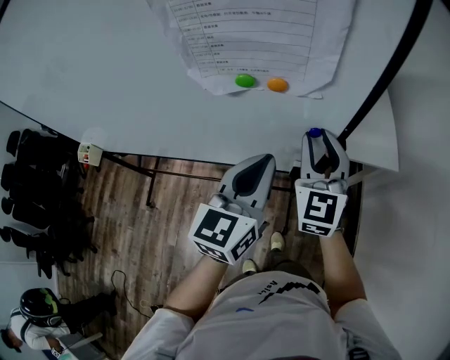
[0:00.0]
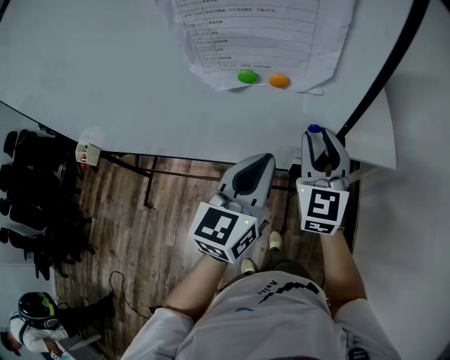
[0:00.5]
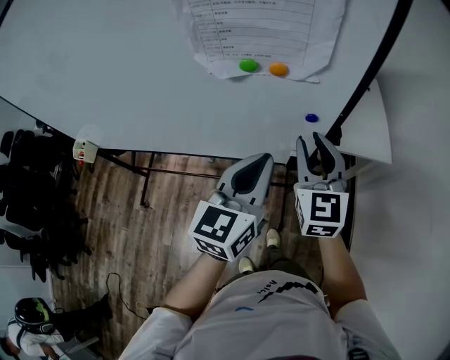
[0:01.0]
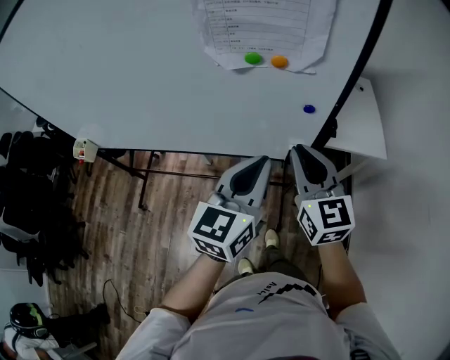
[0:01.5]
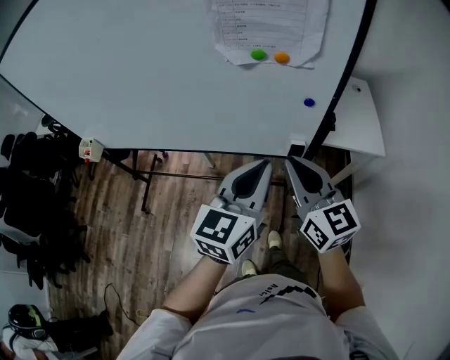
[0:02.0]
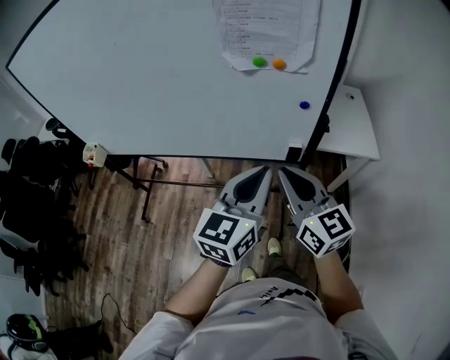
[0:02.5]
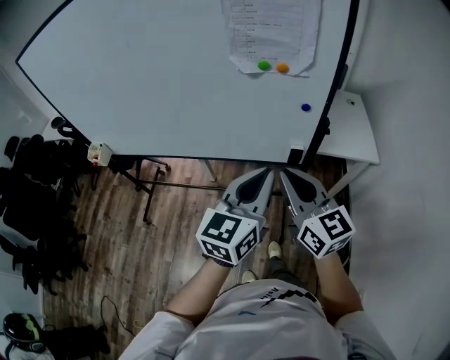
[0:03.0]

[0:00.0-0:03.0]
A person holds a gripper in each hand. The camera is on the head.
0:00.0 to 0:01.5: Both grippers travel together backward, approximately 10 cm. The right gripper swivels about 20 degrees.
0:01.5 to 0:03.0: The right gripper heads backward and to the left, covering some 15 cm, while the left gripper heads backward, covering approximately 10 cm.

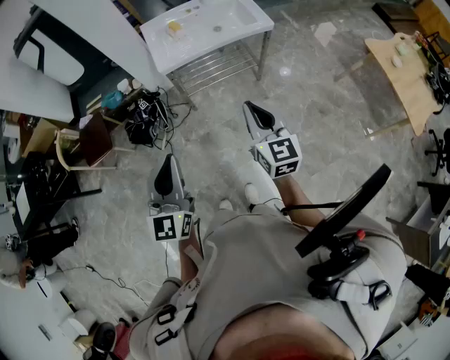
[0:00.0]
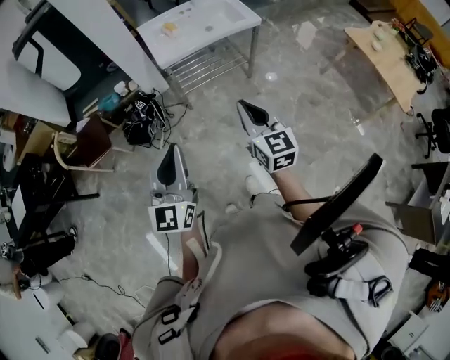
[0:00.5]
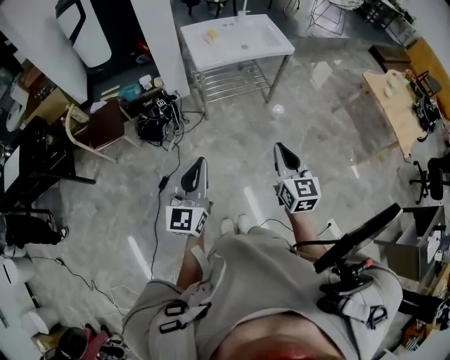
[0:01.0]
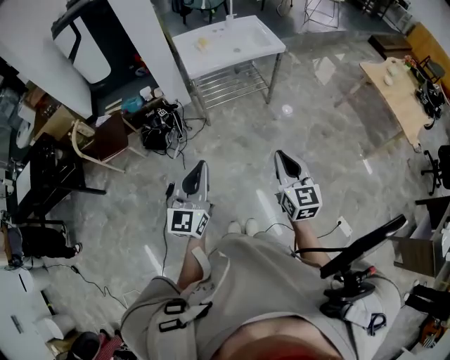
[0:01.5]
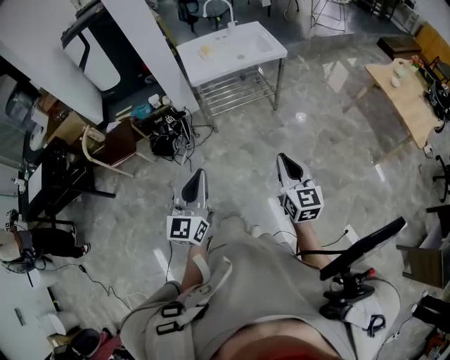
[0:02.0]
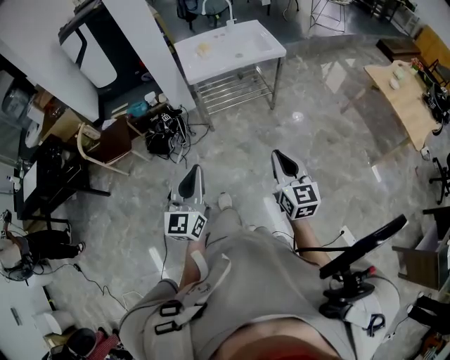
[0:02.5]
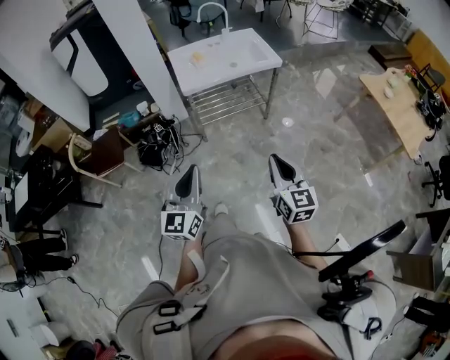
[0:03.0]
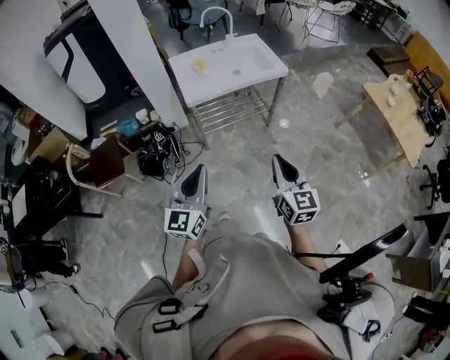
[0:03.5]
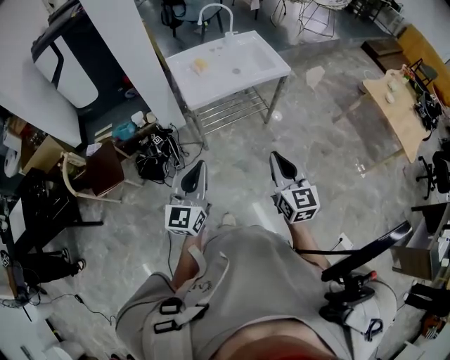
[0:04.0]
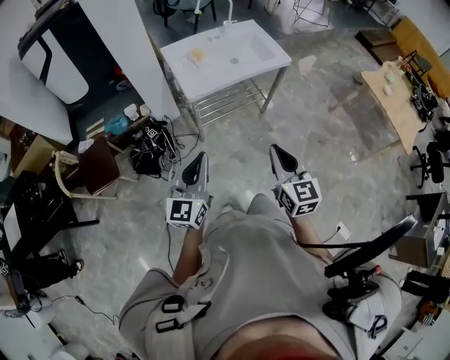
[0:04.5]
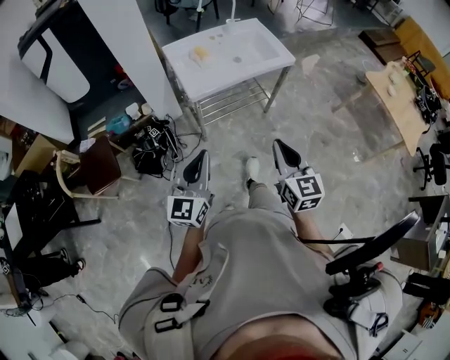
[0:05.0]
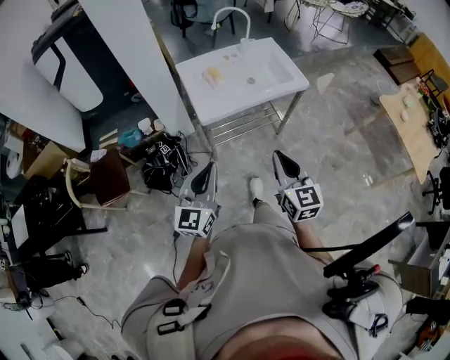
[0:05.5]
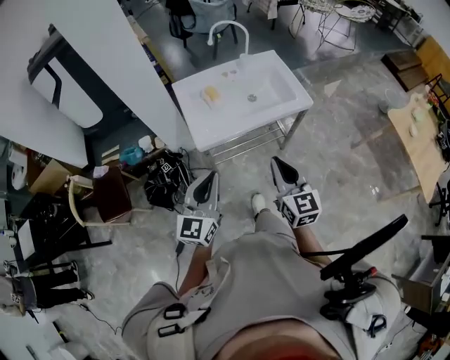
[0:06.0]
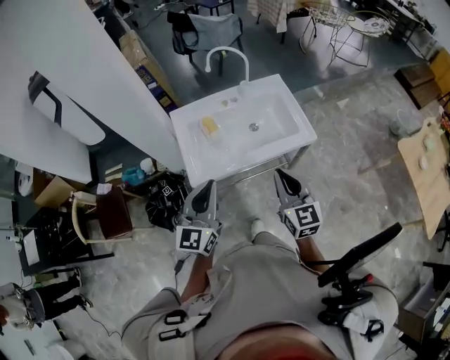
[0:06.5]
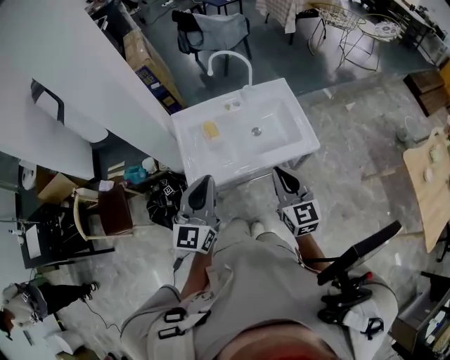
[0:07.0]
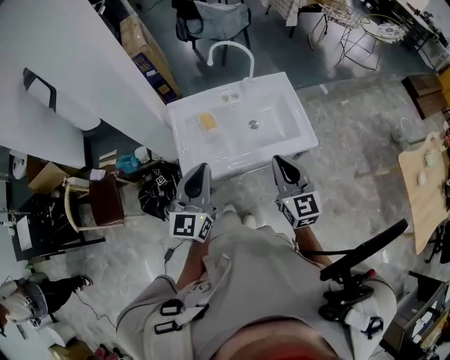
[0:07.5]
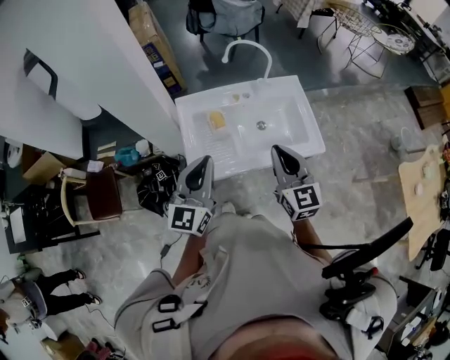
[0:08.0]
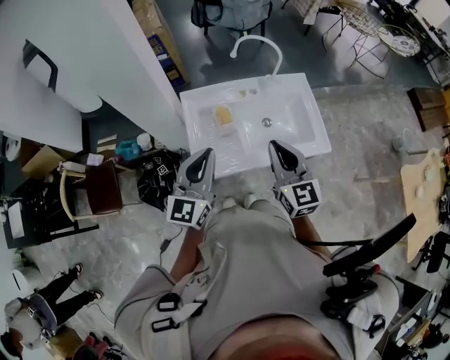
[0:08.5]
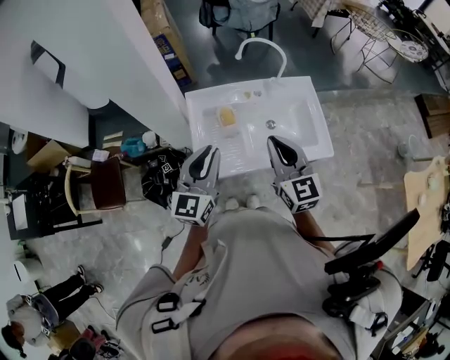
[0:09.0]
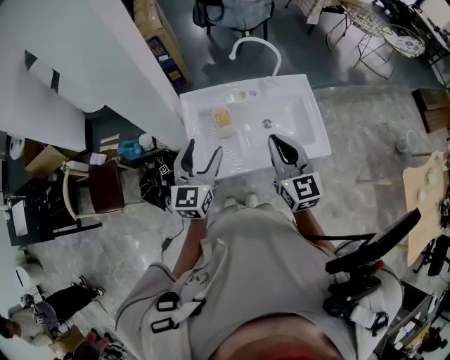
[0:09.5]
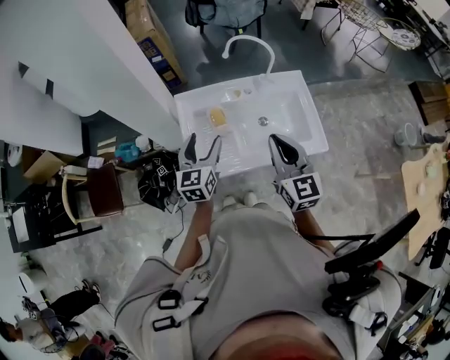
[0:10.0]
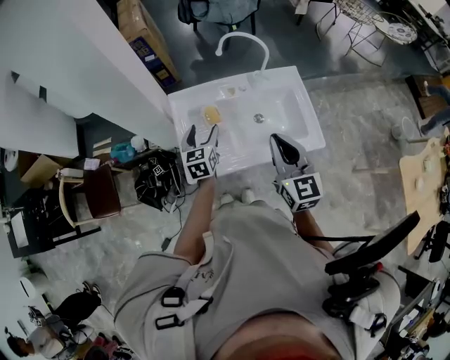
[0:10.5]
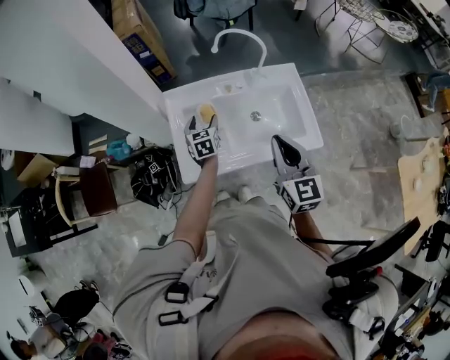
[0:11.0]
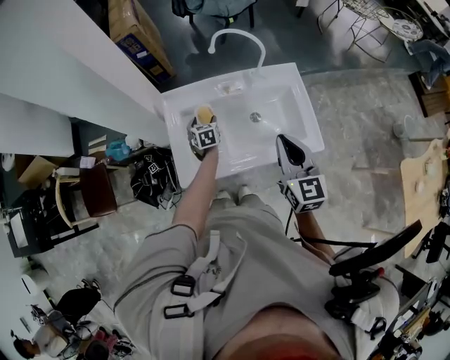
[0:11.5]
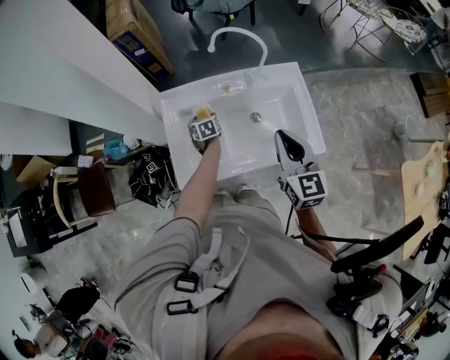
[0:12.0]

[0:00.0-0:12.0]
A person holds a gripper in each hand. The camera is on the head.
0:00.0 to 0:02.0: The grippers both shift backward by roughly 25 cm.
0:02.0 to 0:04.0: Both grippers travel together forward and to the left, about 25 cm.
0:04.0 to 0:06.0: The grippers both shift forward by some 25 cm.
0:06.0 to 0:08.0: The grippers both shift forward by roughly 25 cm.
0:08.0 to 0:10.0: The left gripper moves downward and forward, approximately 15 cm, turns by approximately 20 degrees, and opens up.
0:10.0 to 0:12.0: The right gripper is displaced to the right and forward by roughly 10 cm; the left gripper moves downward and forward, roughly 35 cm, and tilts its fingers about 40 degrees downward.

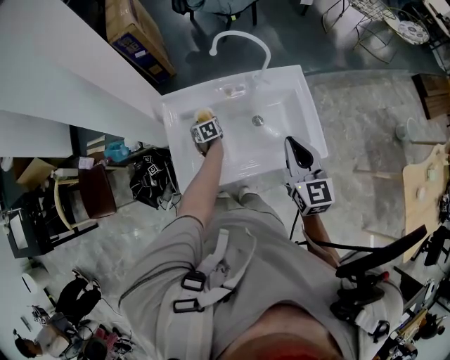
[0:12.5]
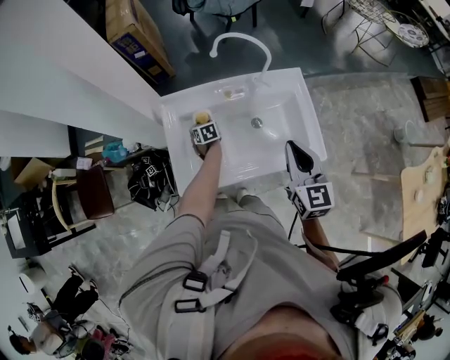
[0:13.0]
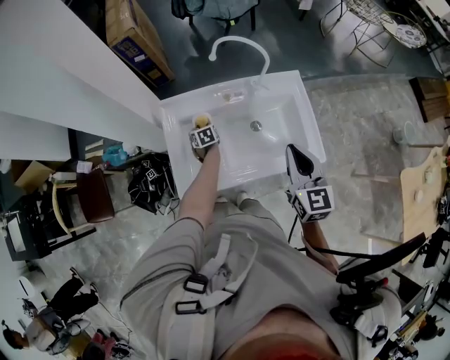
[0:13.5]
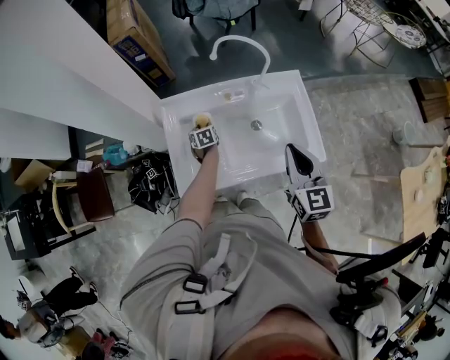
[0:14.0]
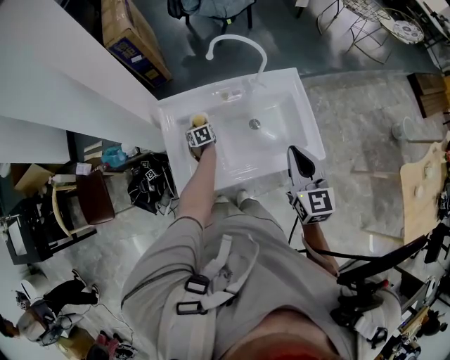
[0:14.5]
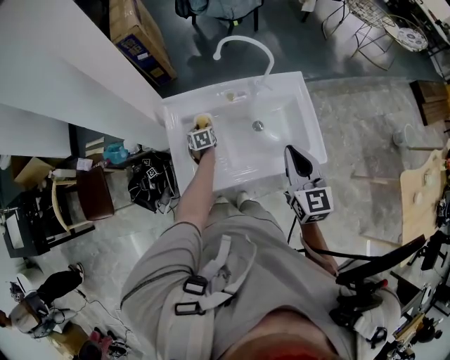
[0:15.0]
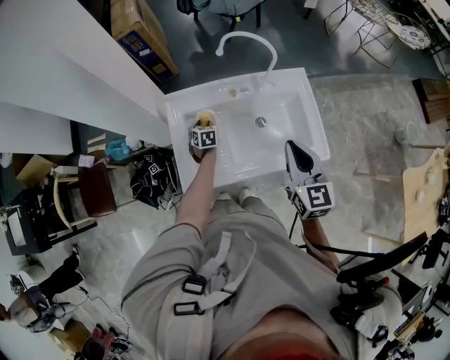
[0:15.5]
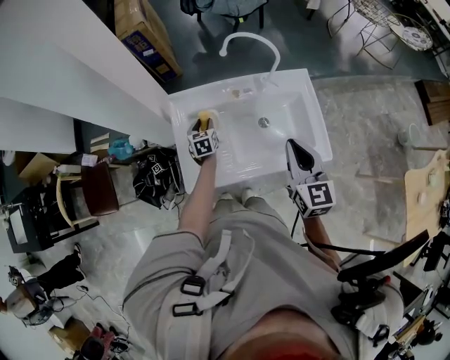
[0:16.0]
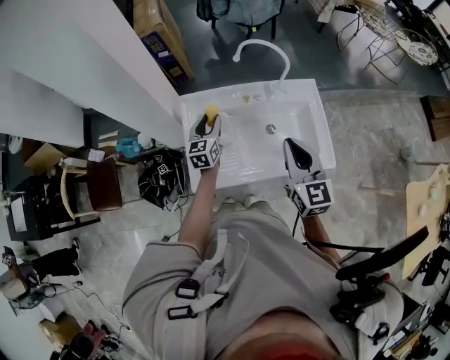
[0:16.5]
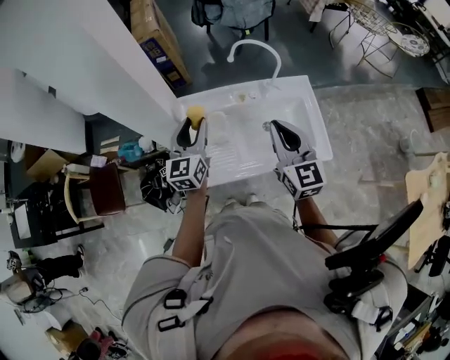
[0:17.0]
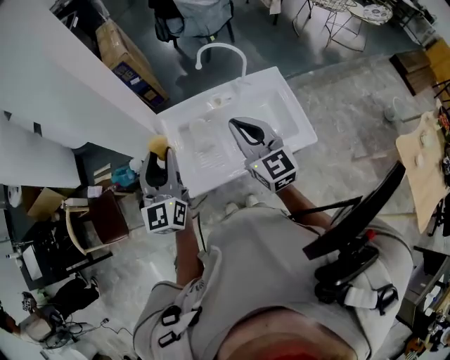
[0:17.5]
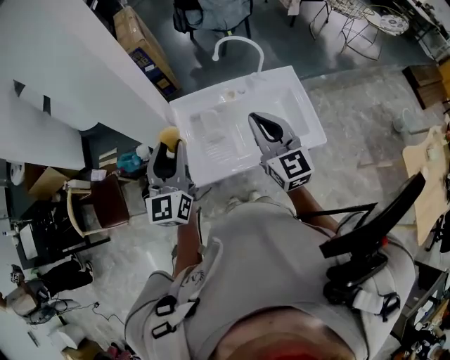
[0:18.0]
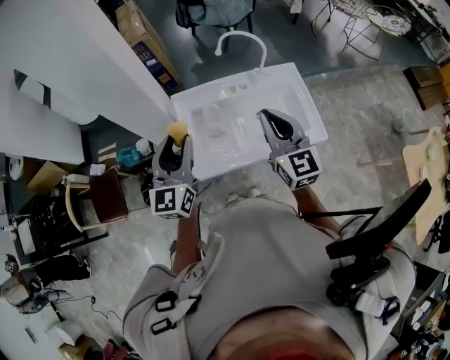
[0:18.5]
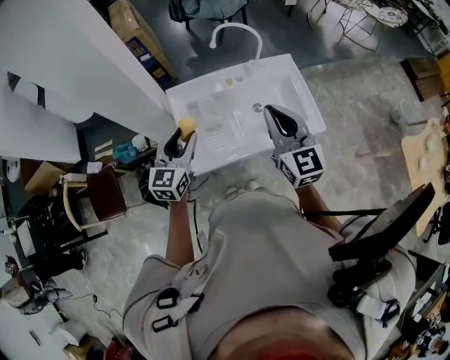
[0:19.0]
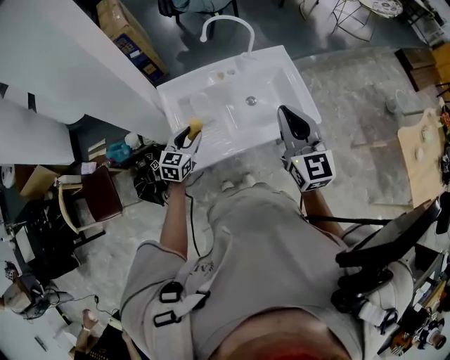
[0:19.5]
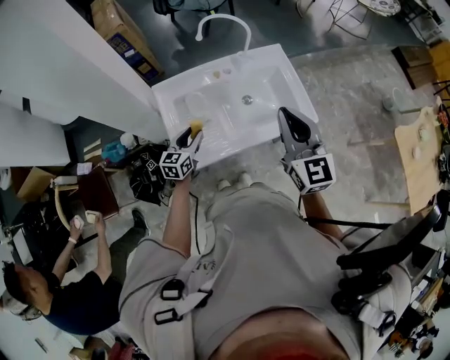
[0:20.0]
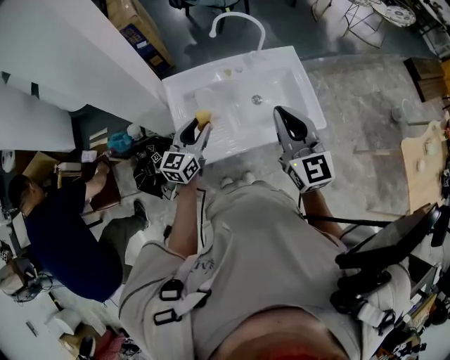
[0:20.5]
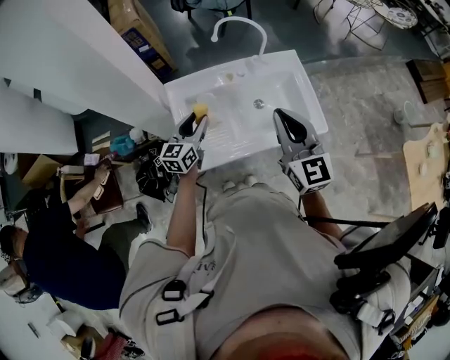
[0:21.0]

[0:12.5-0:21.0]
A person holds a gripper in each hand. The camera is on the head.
0:12.5 to 0:14.5: The grippers move only a little.
0:14.5 to 0:16.5: The left gripper heads upward, covering approximately 25 cm, and tips its fingers upward by about 40 degrees. Meanwhile the right gripper heads to the left, covering approximately 5 cm.
0:16.5 to 0:19.0: The right gripper shifts some 10 cm upward and backward. Meanwhile the left gripper shifts roughly 25 cm backward and upward, and swivels roughly 20 degrees.
0:19.0 to 0:21.0: The left gripper heads downward and forward, covering roughly 15 cm.

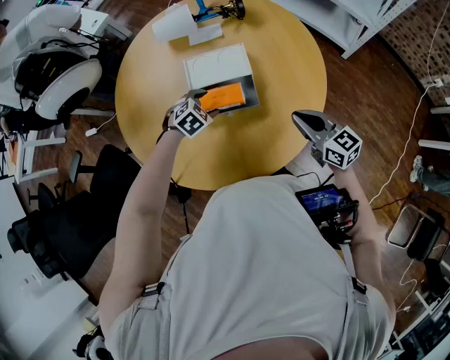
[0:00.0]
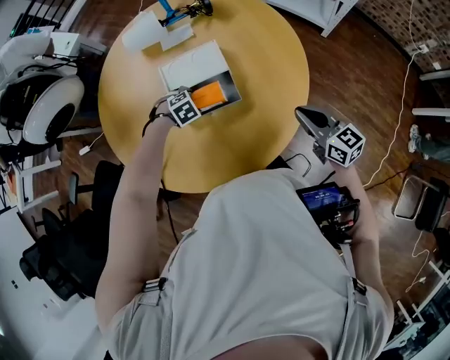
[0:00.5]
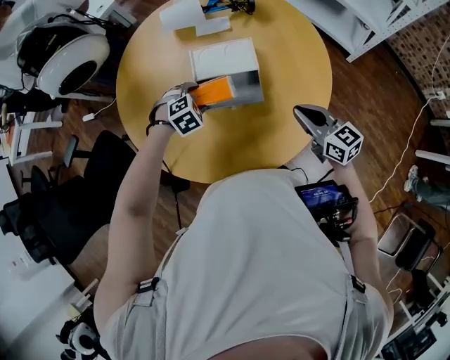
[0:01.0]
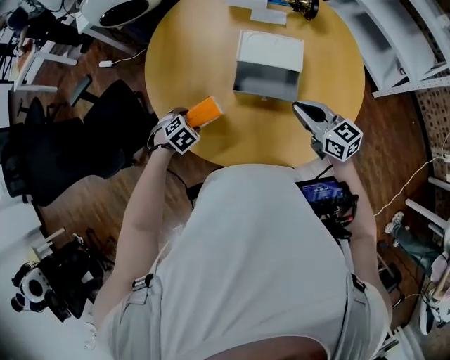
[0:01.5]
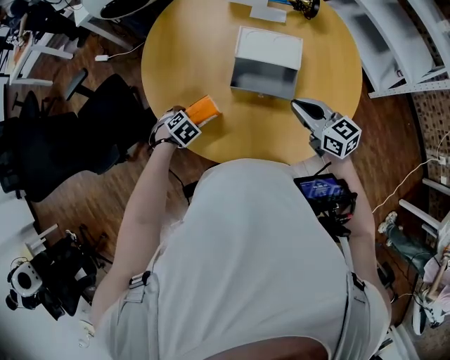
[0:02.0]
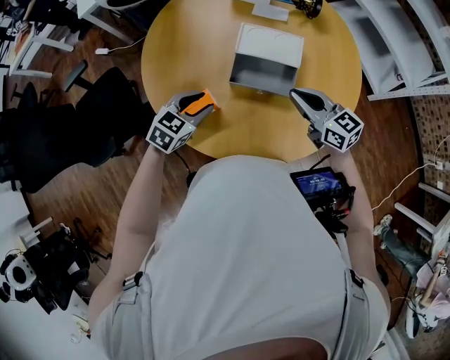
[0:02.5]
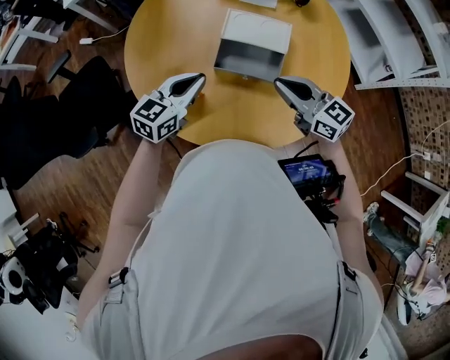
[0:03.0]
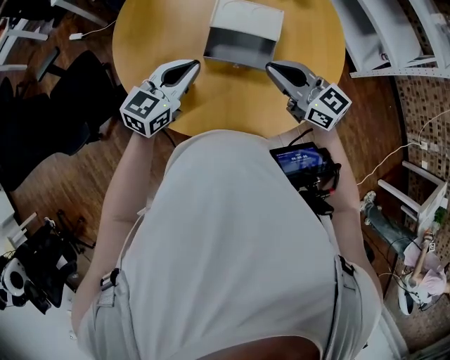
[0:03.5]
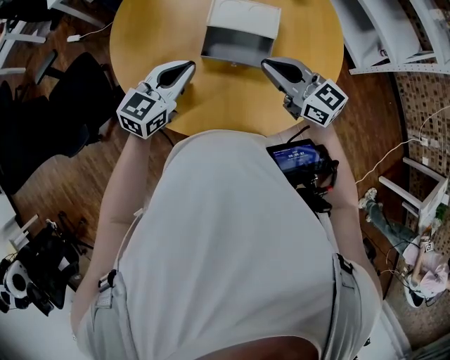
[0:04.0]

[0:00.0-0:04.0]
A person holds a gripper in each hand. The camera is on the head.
0:00.0 to 0:02.0: The left gripper goes up and down, about 10 cm each way, reversing 2 times, and changes its angle by about 40 degrees. The right gripper changes place by about 15 cm, and rotates some 20 degrees.
0:02.0 to 0:04.0: The left gripper travels upward by approximately 25 cm, points its fingers some 70 degrees further upward, and closes up. Meanwhile the right gripper shifts by about 5 cm.
